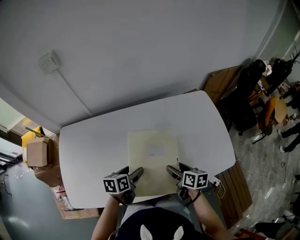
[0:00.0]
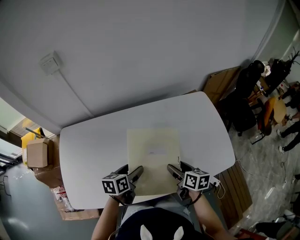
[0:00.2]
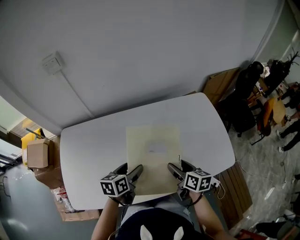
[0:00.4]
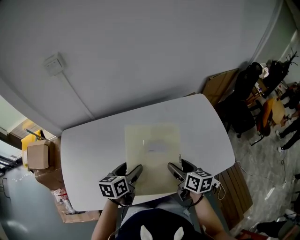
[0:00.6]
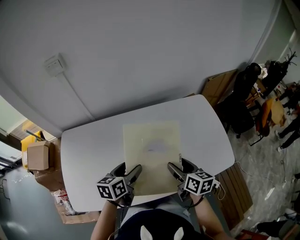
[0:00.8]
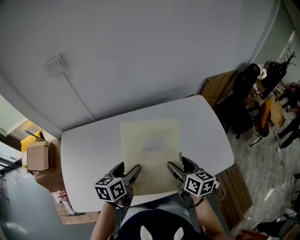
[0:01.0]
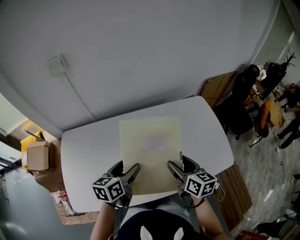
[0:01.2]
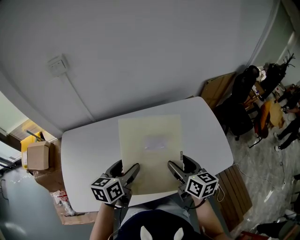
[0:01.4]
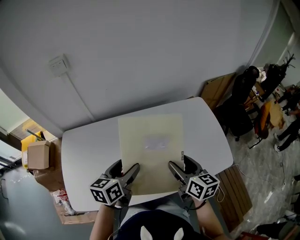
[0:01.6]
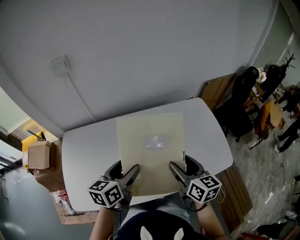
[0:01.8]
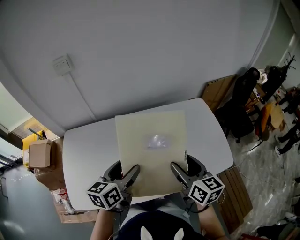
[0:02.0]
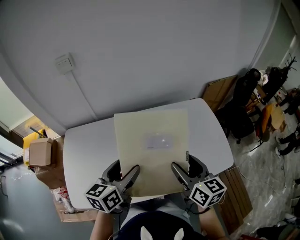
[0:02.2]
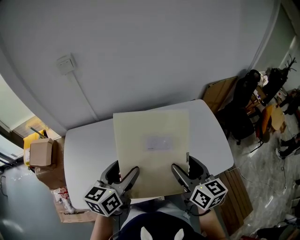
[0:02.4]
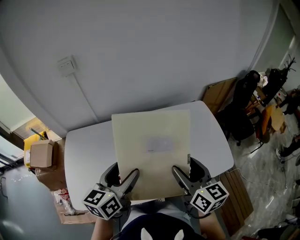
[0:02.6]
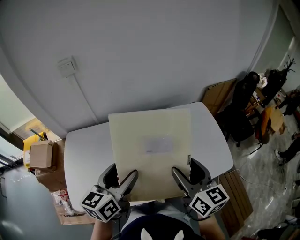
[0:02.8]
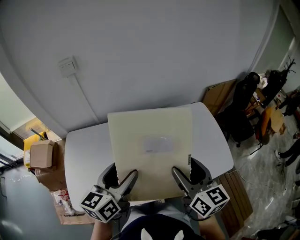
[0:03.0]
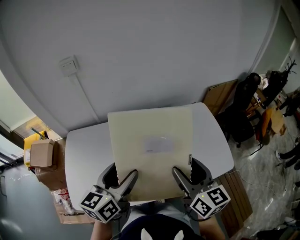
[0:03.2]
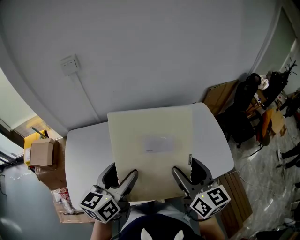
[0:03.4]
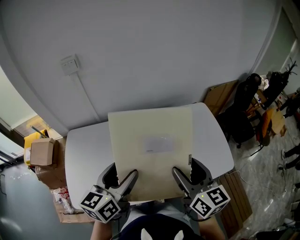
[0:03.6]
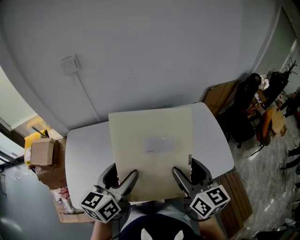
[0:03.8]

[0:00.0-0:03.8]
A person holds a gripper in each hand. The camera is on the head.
0:00.0 to 0:01.2: Both grippers move upward, approximately 15 cm. The right gripper swivels roughly 20 degrees.
0:01.2 to 0:02.6: Both grippers travel together upward, about 10 cm.
0:02.6 to 0:03.8: The grippers move only a little.

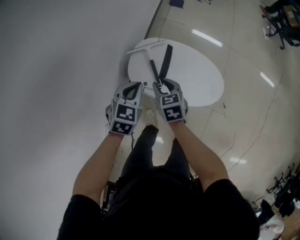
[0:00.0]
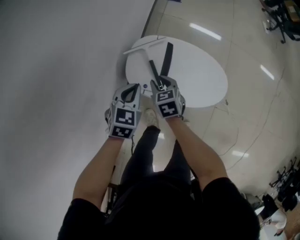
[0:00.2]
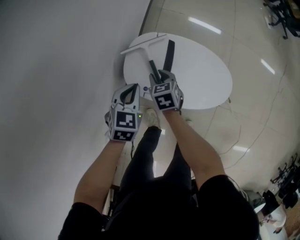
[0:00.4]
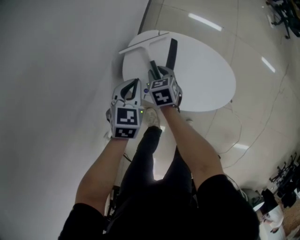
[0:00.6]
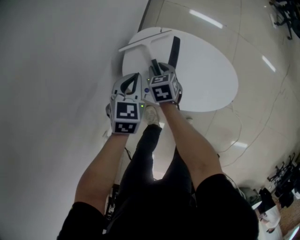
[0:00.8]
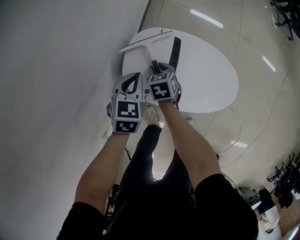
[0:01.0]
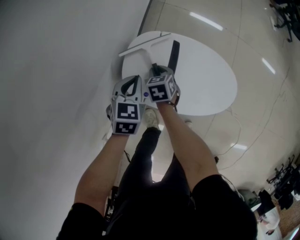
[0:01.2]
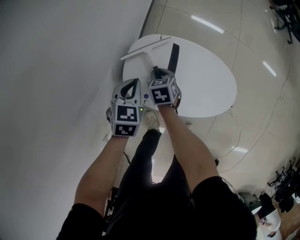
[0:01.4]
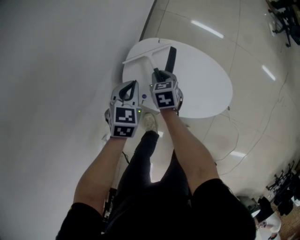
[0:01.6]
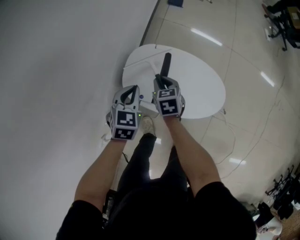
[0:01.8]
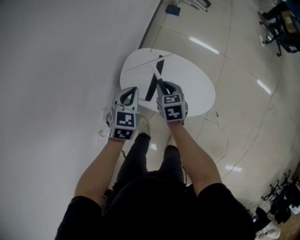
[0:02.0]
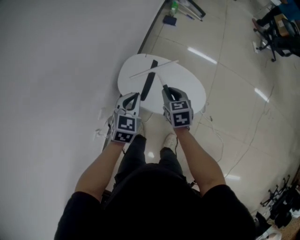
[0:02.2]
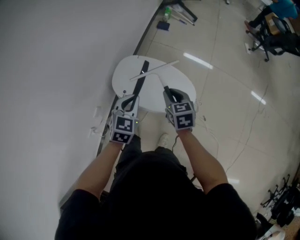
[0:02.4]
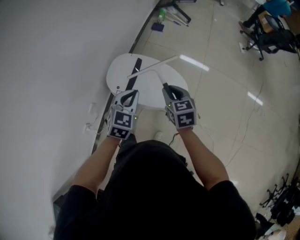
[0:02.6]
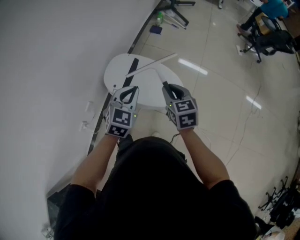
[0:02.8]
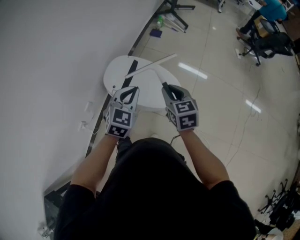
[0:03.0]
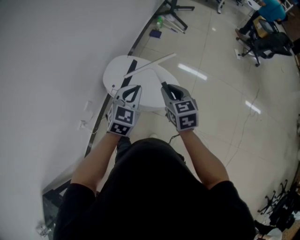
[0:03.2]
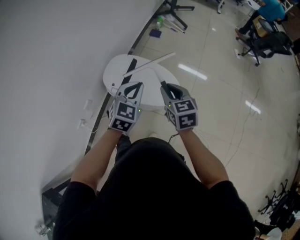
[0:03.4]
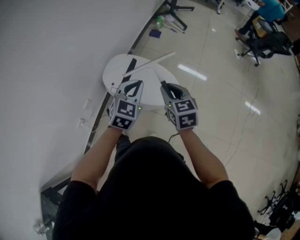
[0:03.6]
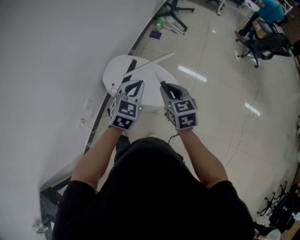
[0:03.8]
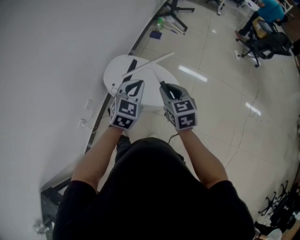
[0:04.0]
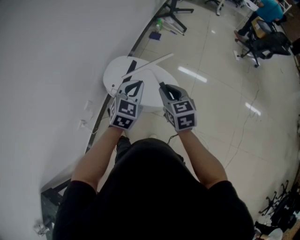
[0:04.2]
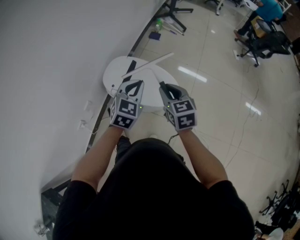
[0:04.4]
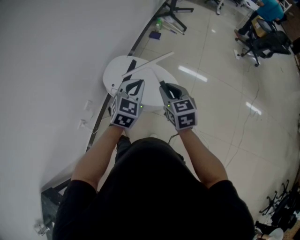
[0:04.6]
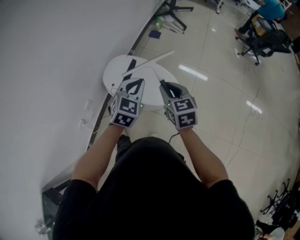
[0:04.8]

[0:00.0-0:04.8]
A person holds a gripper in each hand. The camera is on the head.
0:00.0 to 0:01.6: The right gripper heads forward and downward, covering about 15 cm, while the left gripper goes some 10 cm forward.
0:01.6 to 0:03.2: The left gripper moves to the right, upward and backward, roughly 35 cm, and changes its angle by approximately 20 degrees. The right gripper travels upward, to the right and backward by some 40 cm, and swivels roughly 30 degrees.
0:03.2 to 0:04.8: There are only small adjustments of the grippers.

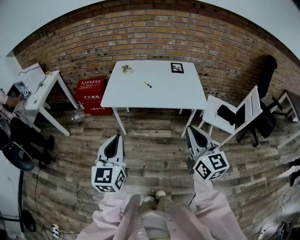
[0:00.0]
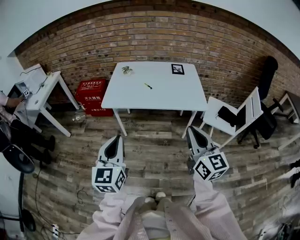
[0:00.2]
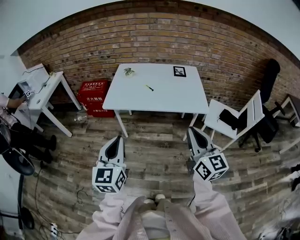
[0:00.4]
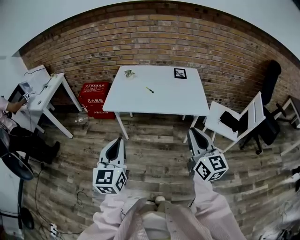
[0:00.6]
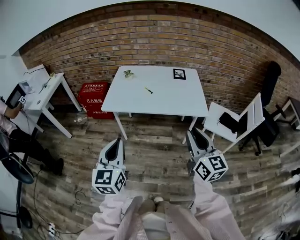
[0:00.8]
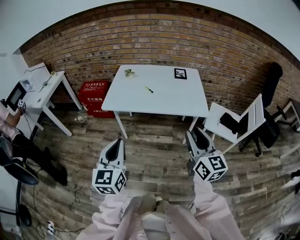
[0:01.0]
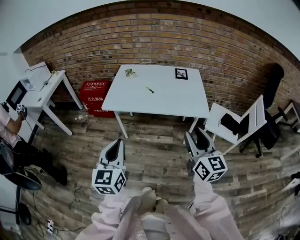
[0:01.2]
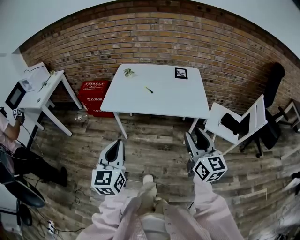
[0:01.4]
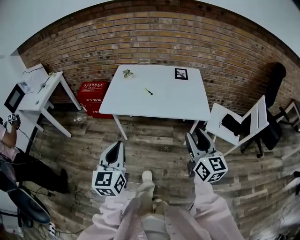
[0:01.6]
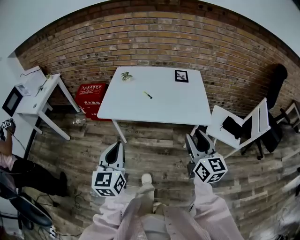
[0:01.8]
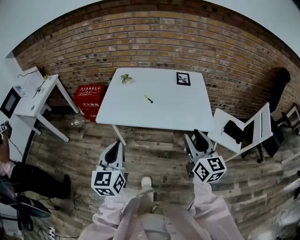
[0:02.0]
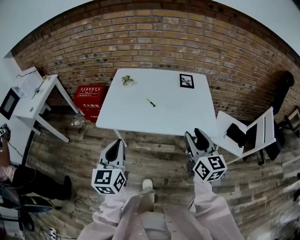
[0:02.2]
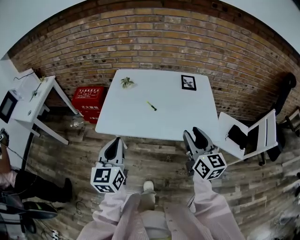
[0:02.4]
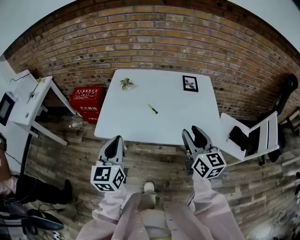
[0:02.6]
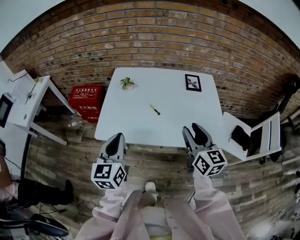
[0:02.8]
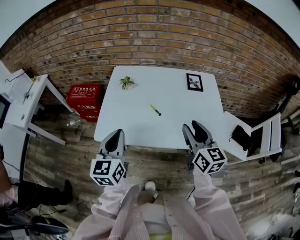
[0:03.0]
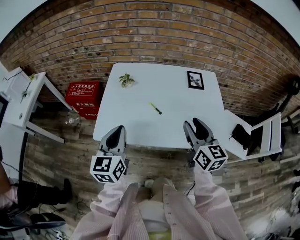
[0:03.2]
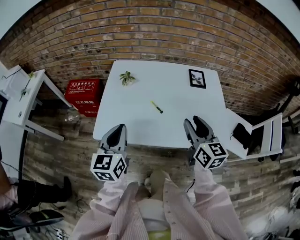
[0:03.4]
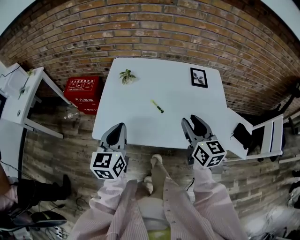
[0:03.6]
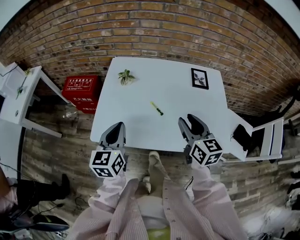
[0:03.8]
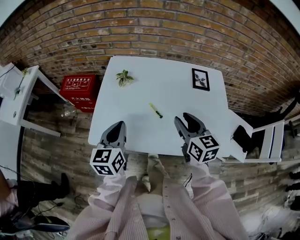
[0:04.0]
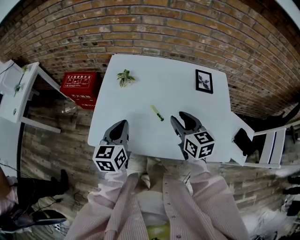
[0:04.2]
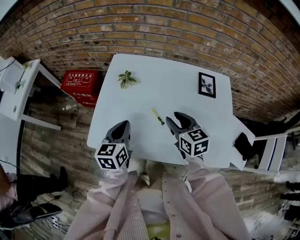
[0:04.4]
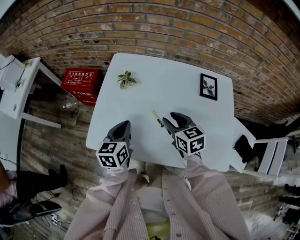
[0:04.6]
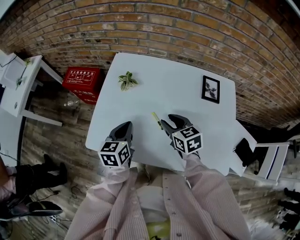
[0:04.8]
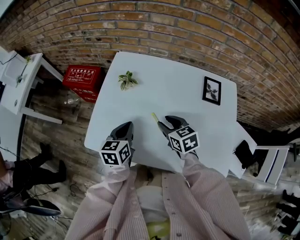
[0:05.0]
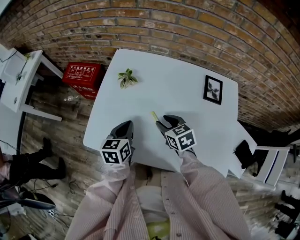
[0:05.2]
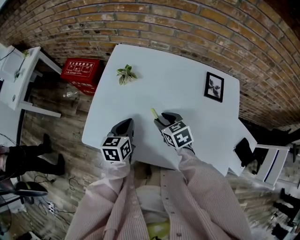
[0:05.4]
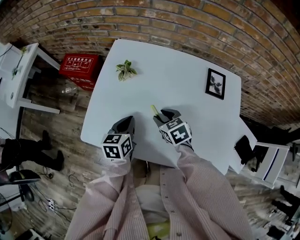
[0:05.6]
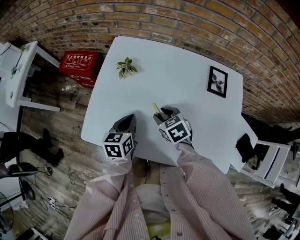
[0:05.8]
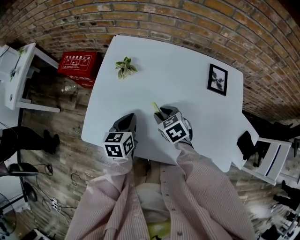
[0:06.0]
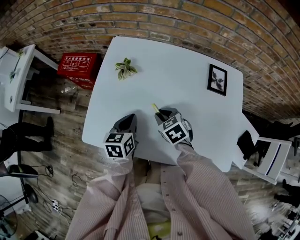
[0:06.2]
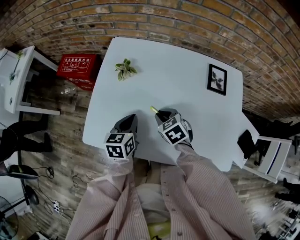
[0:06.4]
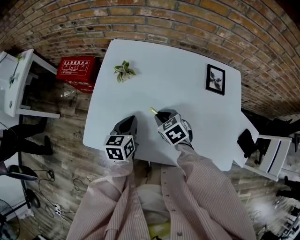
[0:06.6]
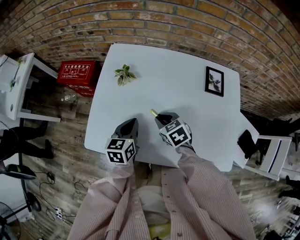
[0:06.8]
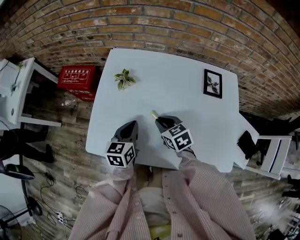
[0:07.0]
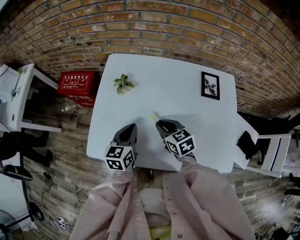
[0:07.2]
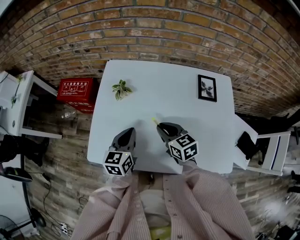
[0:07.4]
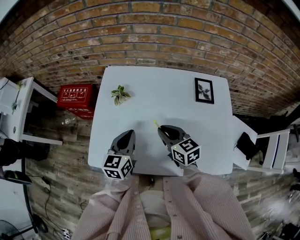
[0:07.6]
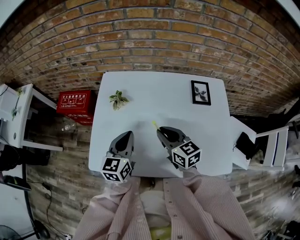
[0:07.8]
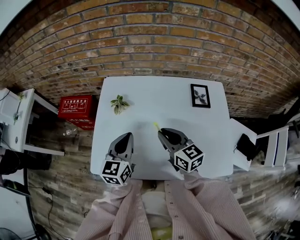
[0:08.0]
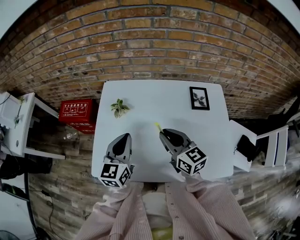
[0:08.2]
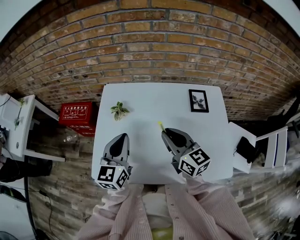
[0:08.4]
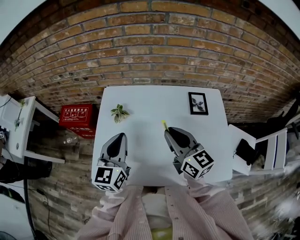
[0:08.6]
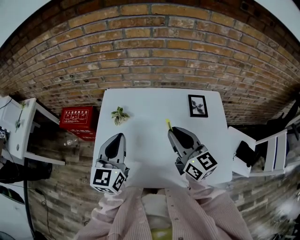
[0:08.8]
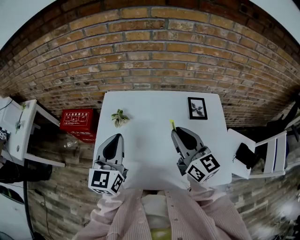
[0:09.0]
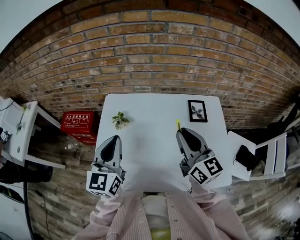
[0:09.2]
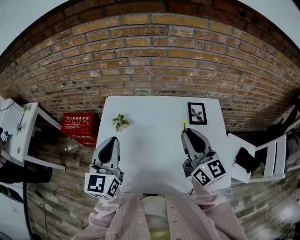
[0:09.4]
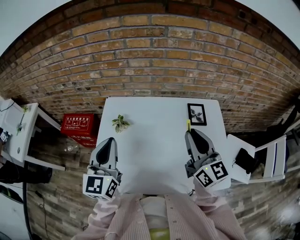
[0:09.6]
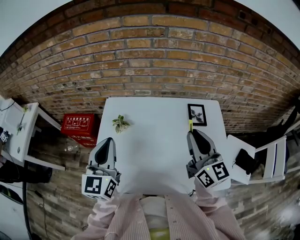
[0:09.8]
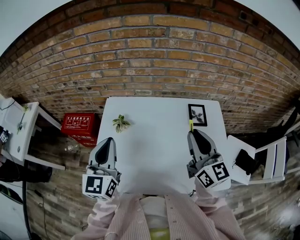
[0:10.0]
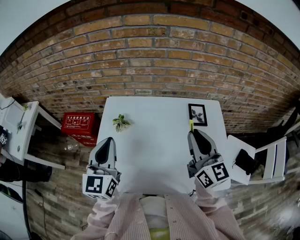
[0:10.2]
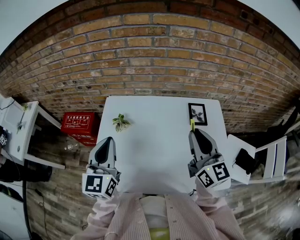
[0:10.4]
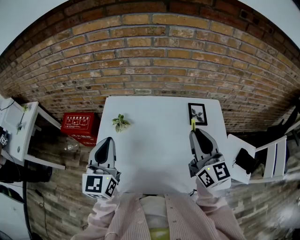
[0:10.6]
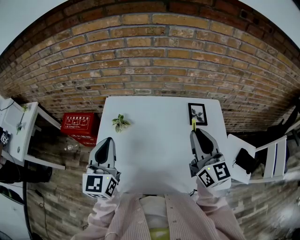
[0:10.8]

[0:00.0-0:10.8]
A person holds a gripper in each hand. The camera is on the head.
0:00.0 to 0:01.6: The left gripper moves approximately 5 cm. Meanwhile the right gripper shifts roughly 10 cm forward and to the right, and opens.
0:01.6 to 0:03.0: The grippers both shift forward by approximately 30 cm.
0:03.0 to 0:04.6: The two grippers go some 20 cm forward and downward. The right gripper turns by some 30 degrees. Meanwhile the left gripper rotates some 20 degrees.
0:04.6 to 0:06.2: Both grippers travel together downward, approximately 10 cm. The right gripper swivels about 30 degrees.
0:06.2 to 0:07.8: Both grippers travel together upward, roughly 10 cm. The right gripper points its fingers roughly 40 degrees further upward, while the left gripper rotates roughly 20 degrees.
0:07.8 to 0:09.2: The right gripper goes roughly 20 cm upward and to the right, and changes its angle by some 30 degrees. Meanwhile the left gripper shifts approximately 15 cm upward.
0:09.2 to 0:10.8: The right gripper ends up about 5 cm from where it was.

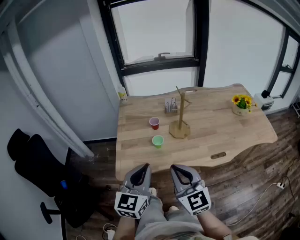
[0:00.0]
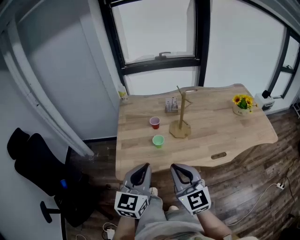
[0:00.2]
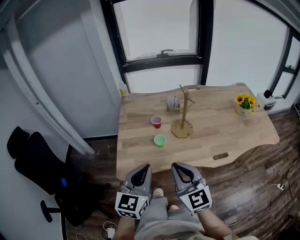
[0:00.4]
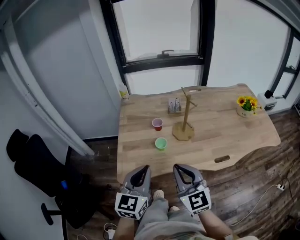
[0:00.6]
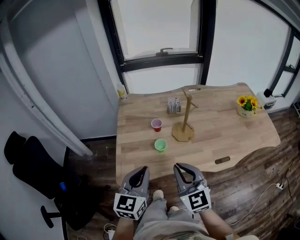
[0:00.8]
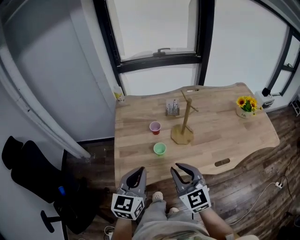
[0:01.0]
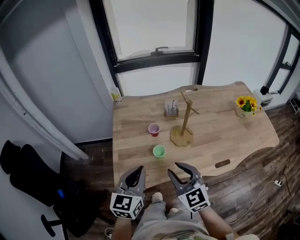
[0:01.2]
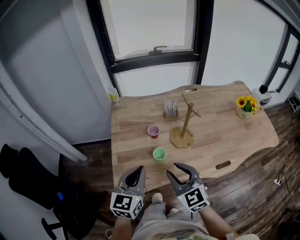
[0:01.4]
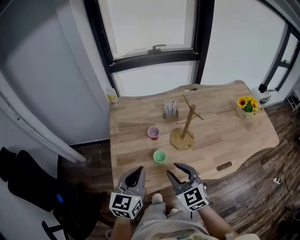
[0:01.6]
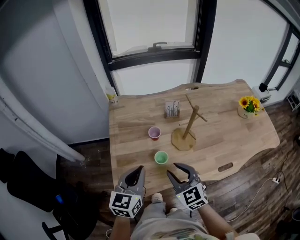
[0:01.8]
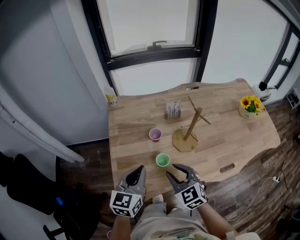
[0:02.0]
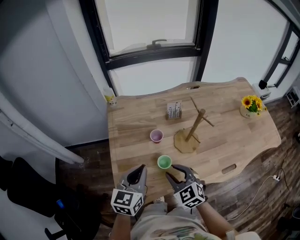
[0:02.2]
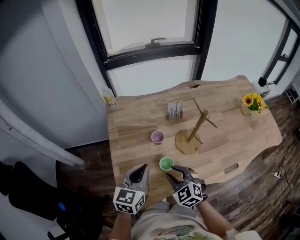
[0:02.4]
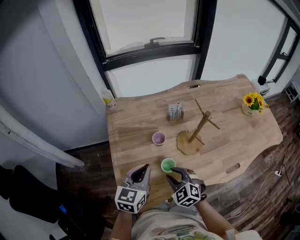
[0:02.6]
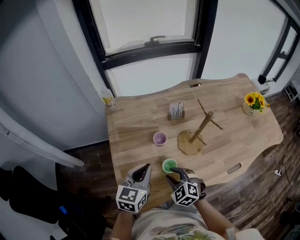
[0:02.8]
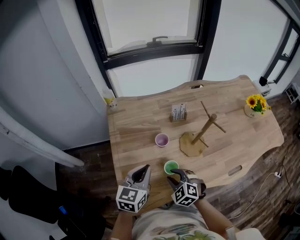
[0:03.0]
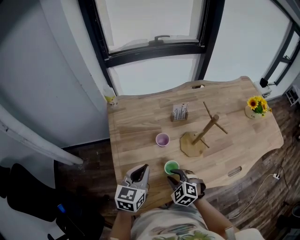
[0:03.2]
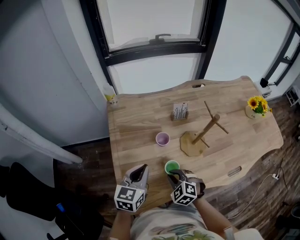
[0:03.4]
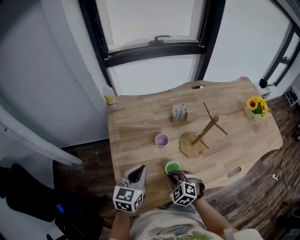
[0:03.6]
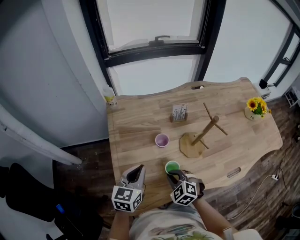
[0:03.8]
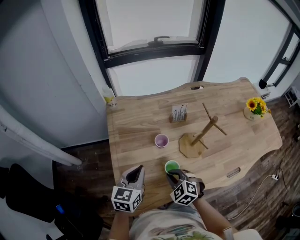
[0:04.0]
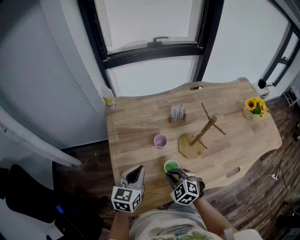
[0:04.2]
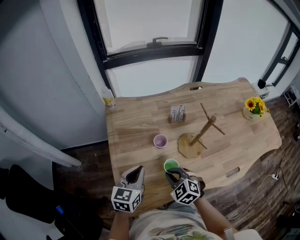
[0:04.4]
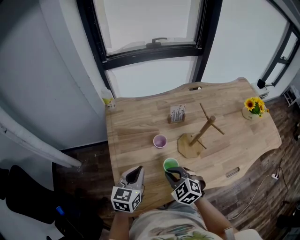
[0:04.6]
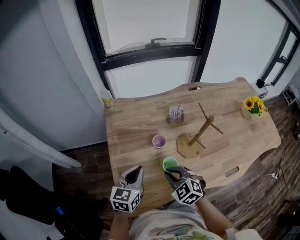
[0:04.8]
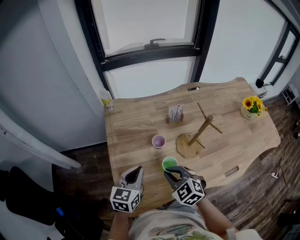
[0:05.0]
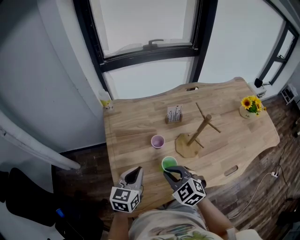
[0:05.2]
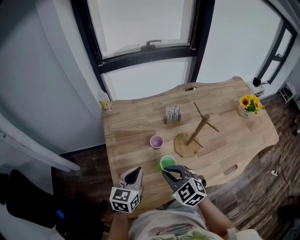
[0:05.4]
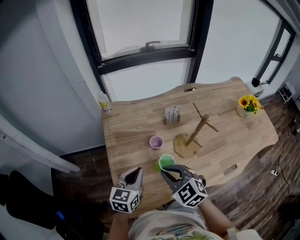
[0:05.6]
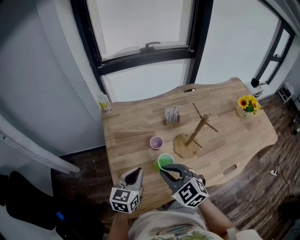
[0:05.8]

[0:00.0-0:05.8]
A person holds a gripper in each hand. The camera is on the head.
0:00.0 to 0:01.4: The left gripper moves forward, some 15 cm; the right gripper heads forward and downward, covering approximately 15 cm, and opens up.
0:01.4 to 0:02.8: The left gripper shifts roughly 15 cm forward and downward. The right gripper is displaced downward and forward by roughly 20 cm, and swivels about 30 degrees.
0:02.8 to 0:04.4: The right gripper closes.
0:04.4 to 0:05.8: The right gripper is displaced upward by about 10 cm.
